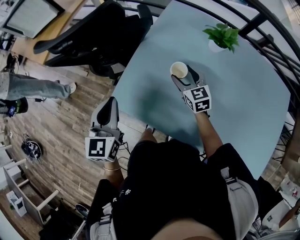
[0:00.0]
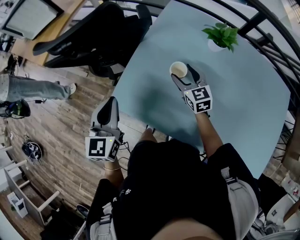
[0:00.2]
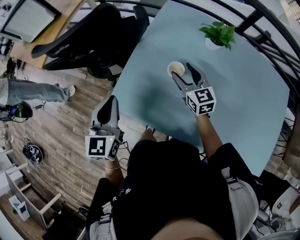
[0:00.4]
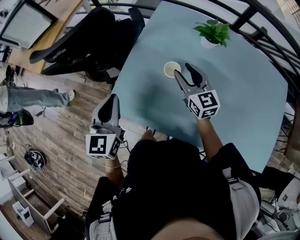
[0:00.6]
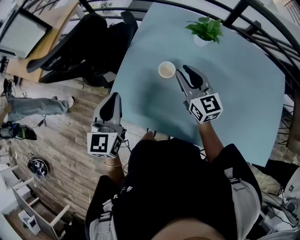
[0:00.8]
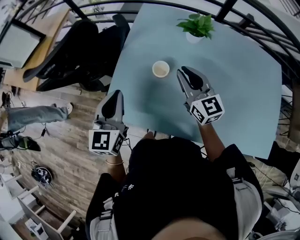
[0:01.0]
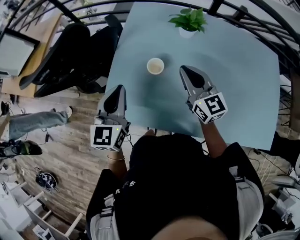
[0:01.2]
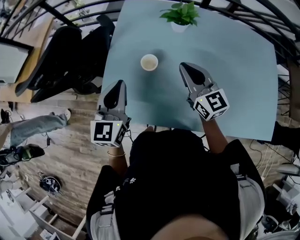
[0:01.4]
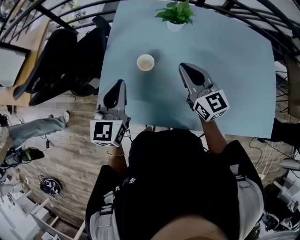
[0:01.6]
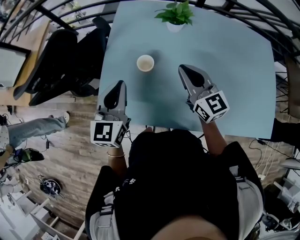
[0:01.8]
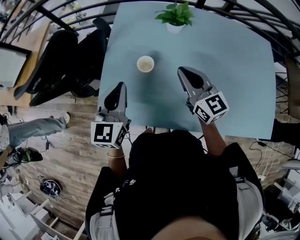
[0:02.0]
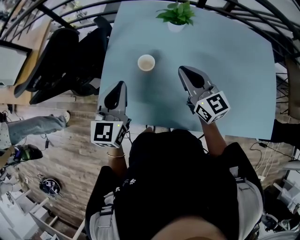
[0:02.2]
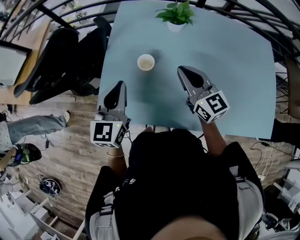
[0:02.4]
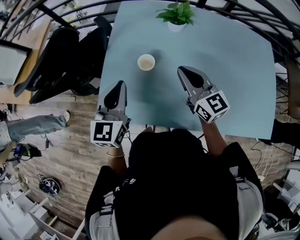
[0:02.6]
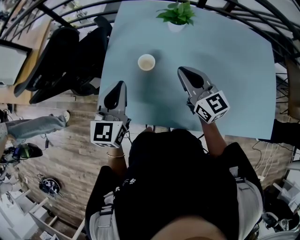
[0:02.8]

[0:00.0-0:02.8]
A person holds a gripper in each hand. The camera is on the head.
0.0 to 1.4 s: The right gripper goes about 20 cm upward, to the right and backward, rotates some 30 degrees, and closes its fingers. Meanwhile the left gripper travels to the right by approximately 15 cm, and swivels some 20 degrees.
1.4 to 2.8 s: The grippers make only small movements.

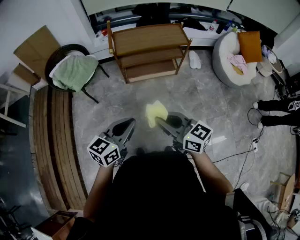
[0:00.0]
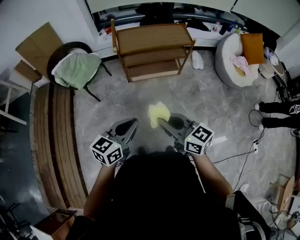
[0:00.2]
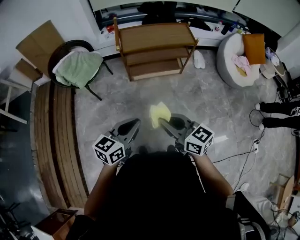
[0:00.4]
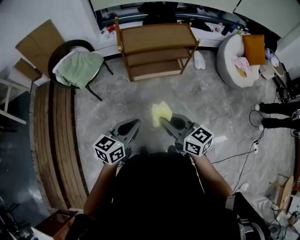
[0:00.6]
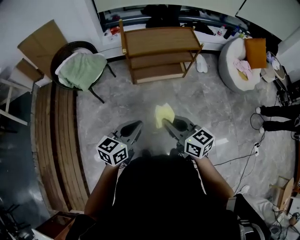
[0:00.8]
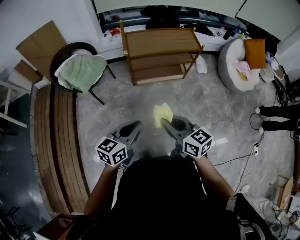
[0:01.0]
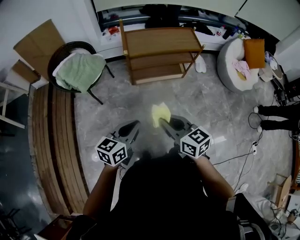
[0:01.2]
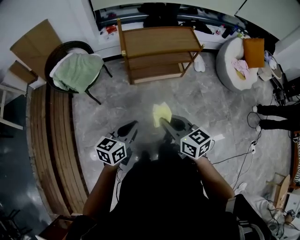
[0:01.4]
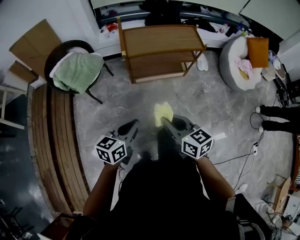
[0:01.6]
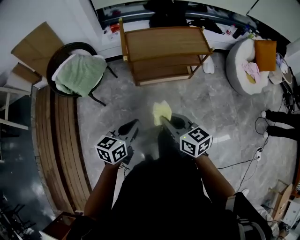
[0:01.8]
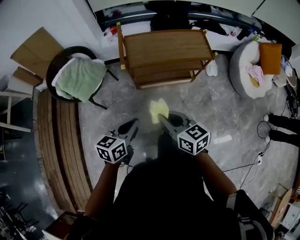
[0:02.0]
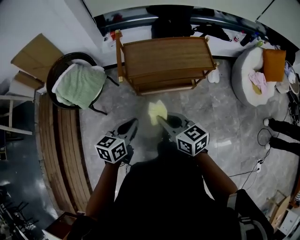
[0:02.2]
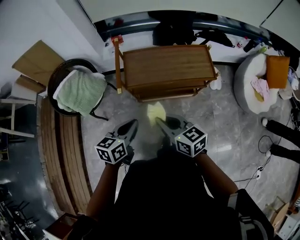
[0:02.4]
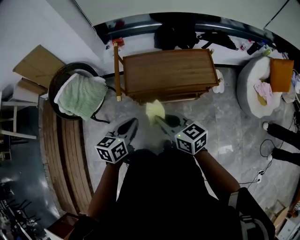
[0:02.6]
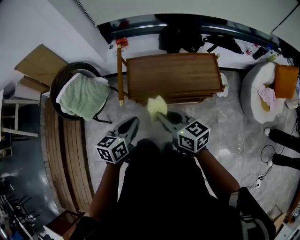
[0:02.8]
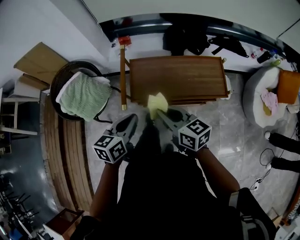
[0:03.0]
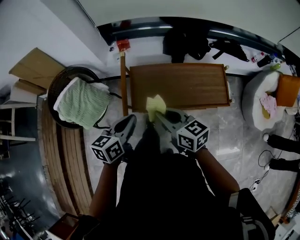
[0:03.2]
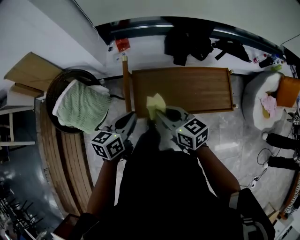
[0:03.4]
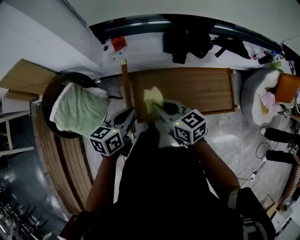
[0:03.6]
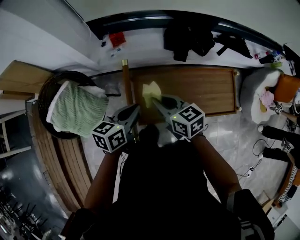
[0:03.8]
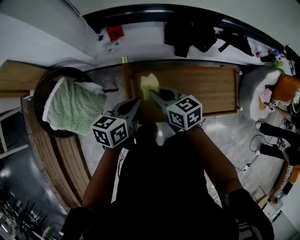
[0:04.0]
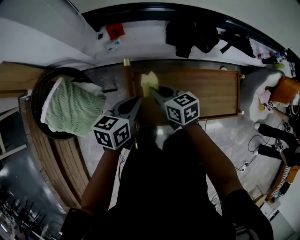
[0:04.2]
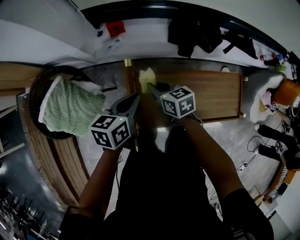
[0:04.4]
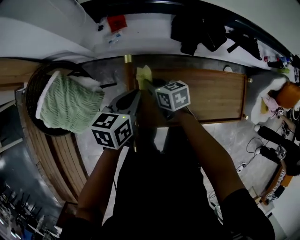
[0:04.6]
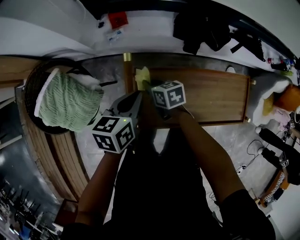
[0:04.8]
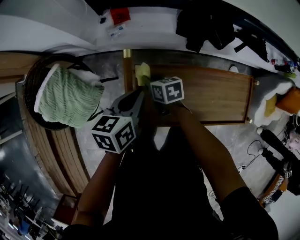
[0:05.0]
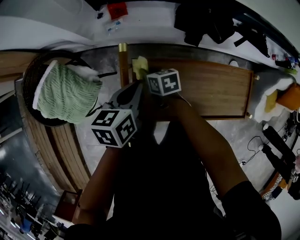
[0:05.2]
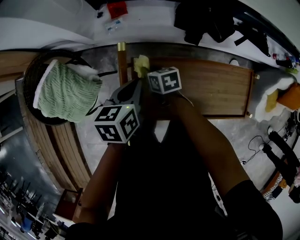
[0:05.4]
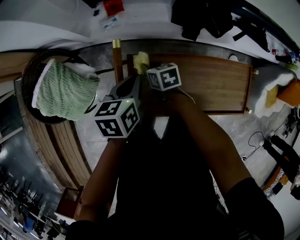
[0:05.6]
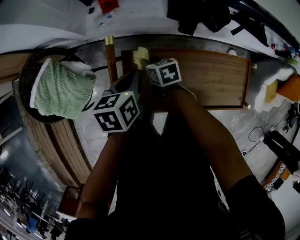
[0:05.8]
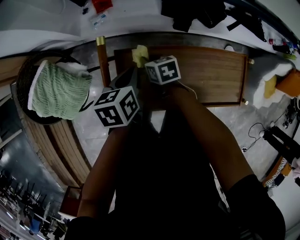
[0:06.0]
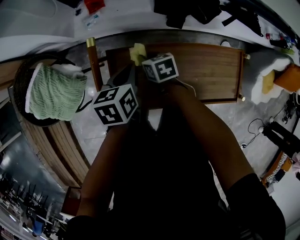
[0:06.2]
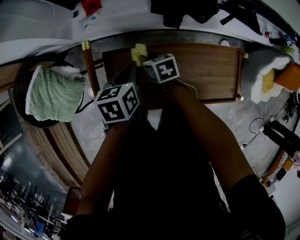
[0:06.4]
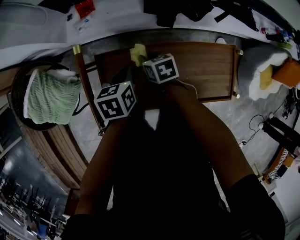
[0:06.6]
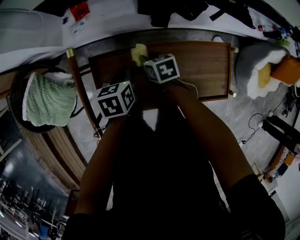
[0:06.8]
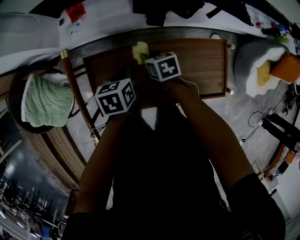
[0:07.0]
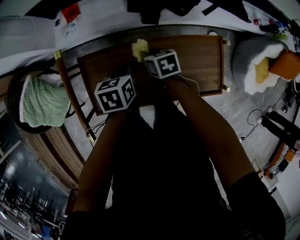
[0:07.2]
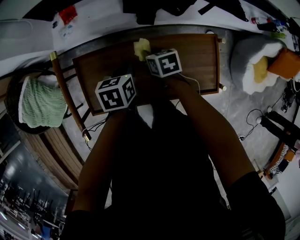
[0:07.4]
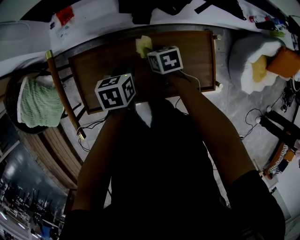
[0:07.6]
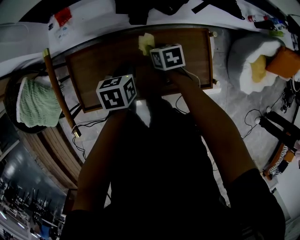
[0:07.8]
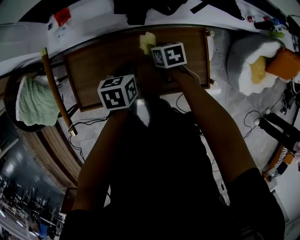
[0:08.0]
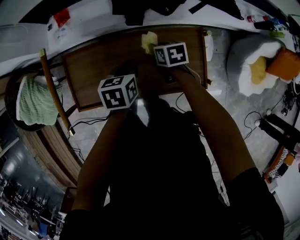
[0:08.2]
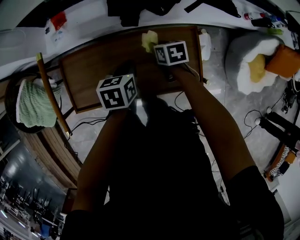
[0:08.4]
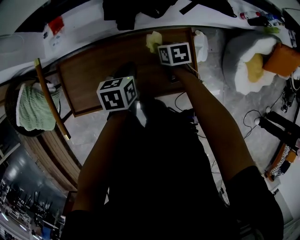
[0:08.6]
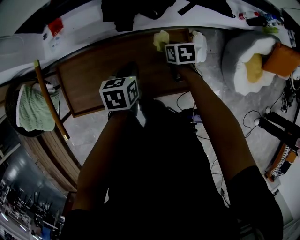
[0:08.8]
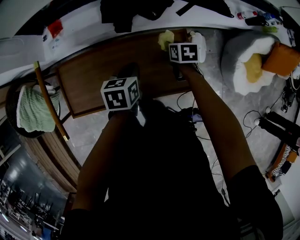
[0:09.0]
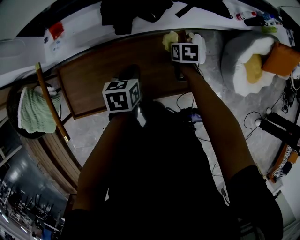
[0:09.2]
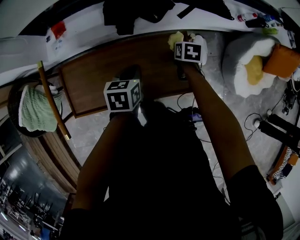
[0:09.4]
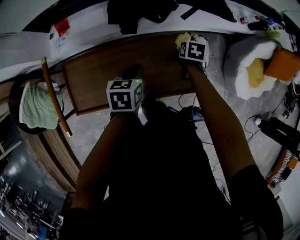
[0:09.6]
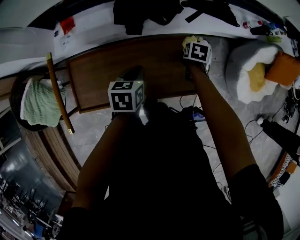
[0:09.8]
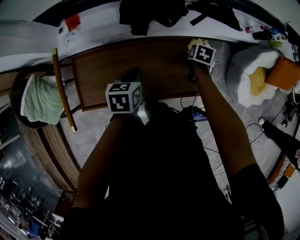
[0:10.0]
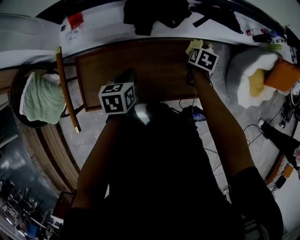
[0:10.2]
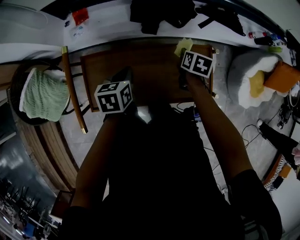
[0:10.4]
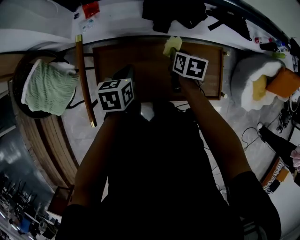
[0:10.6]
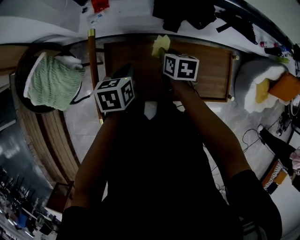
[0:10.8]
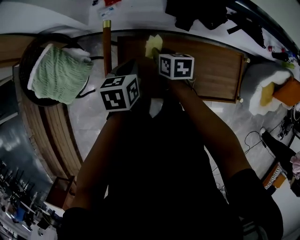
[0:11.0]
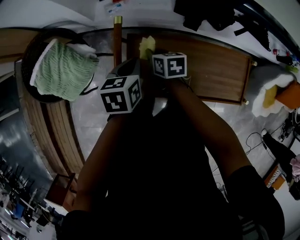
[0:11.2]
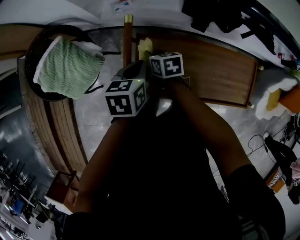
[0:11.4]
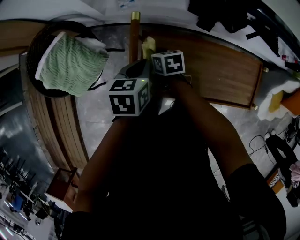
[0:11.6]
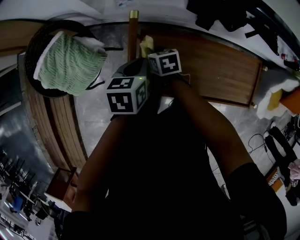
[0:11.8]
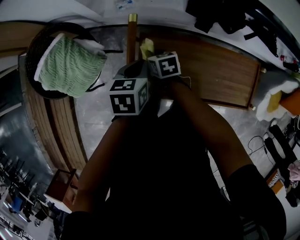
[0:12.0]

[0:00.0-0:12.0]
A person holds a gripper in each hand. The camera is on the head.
0.0 to 1.6 s: The right gripper heads forward and to the left, covering some 10 cm. The left gripper shifts approximately 15 cm forward, to the left and downward.
1.6 to 3.0 s: Both grippers move forward, about 40 cm.
3.0 to 4.4 s: The right gripper goes some 35 cm forward and downward, and changes its angle by some 20 degrees. Meanwhile the left gripper goes about 30 cm forward.
4.4 to 6.0 s: The left gripper moves to the right and downward, some 10 cm, while the right gripper goes approximately 15 cm downward and to the right.
6.0 to 7.6 s: The two grippers go about 20 cm to the right.
7.6 to 9.0 s: The left gripper heads to the right, covering some 15 cm. Meanwhile the right gripper shifts approximately 20 cm to the right.
9.0 to 10.4 s: The right gripper shifts roughly 10 cm to the left and upward. Meanwhile the left gripper heads to the left and backward, covering about 15 cm.
10.4 to 12.0 s: The right gripper changes place by approximately 40 cm, and changes its angle by about 40 degrees. Meanwhile the left gripper moves roughly 20 cm.

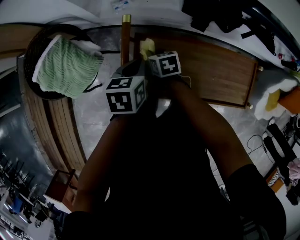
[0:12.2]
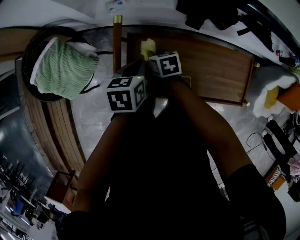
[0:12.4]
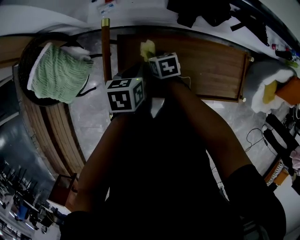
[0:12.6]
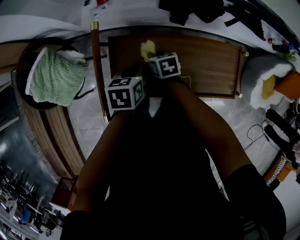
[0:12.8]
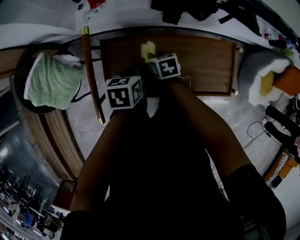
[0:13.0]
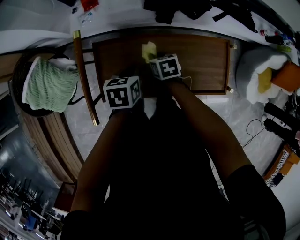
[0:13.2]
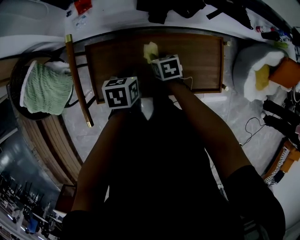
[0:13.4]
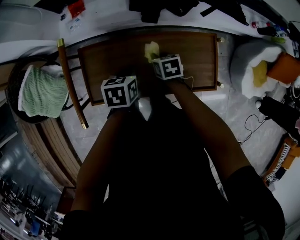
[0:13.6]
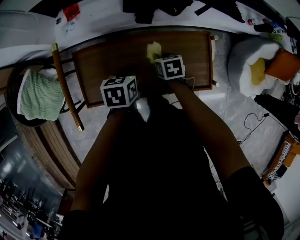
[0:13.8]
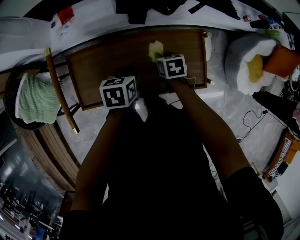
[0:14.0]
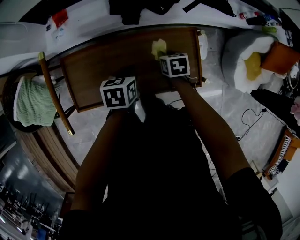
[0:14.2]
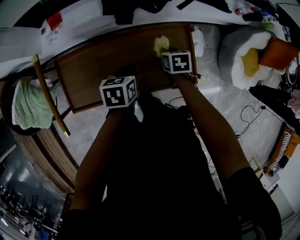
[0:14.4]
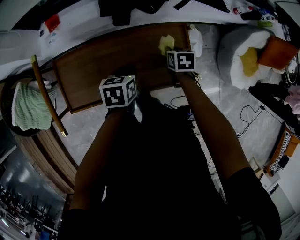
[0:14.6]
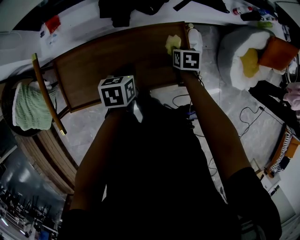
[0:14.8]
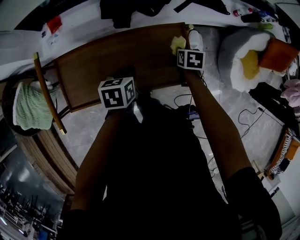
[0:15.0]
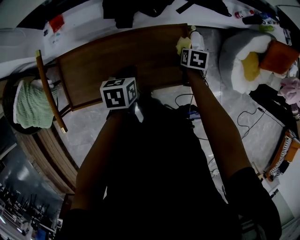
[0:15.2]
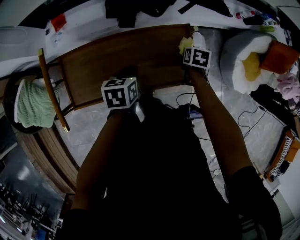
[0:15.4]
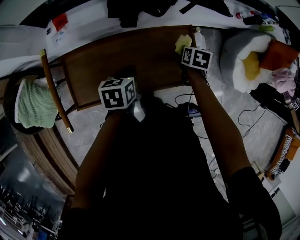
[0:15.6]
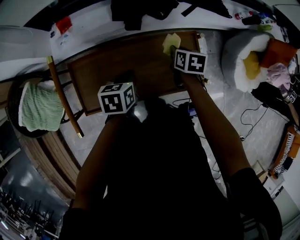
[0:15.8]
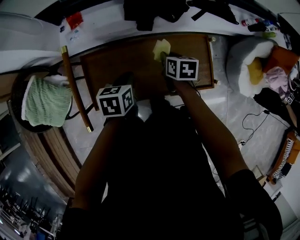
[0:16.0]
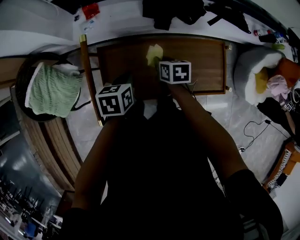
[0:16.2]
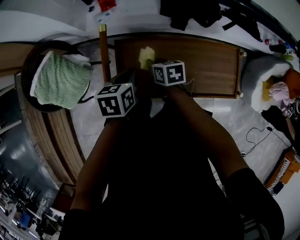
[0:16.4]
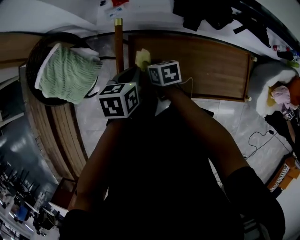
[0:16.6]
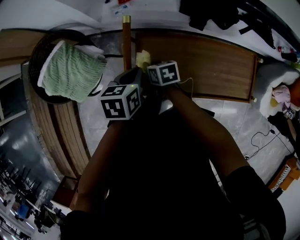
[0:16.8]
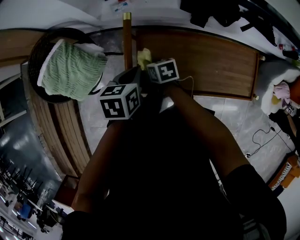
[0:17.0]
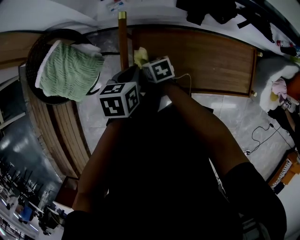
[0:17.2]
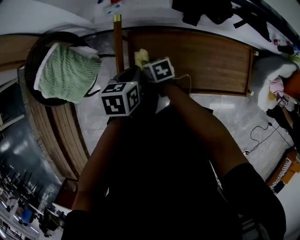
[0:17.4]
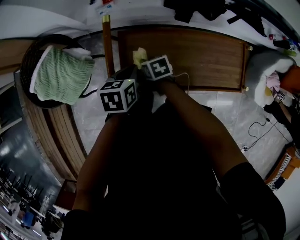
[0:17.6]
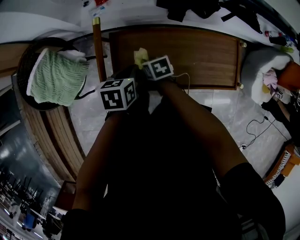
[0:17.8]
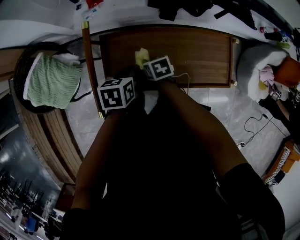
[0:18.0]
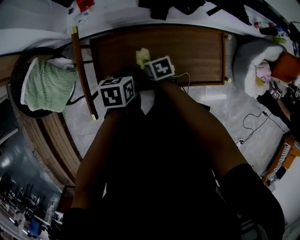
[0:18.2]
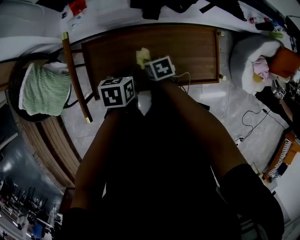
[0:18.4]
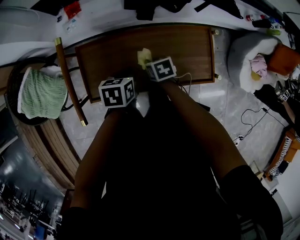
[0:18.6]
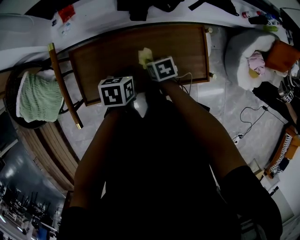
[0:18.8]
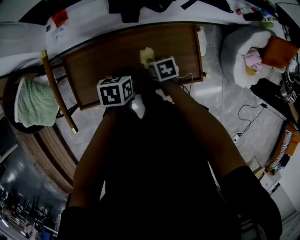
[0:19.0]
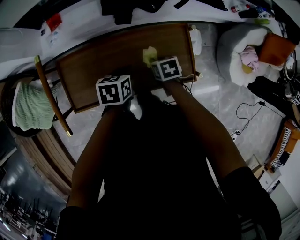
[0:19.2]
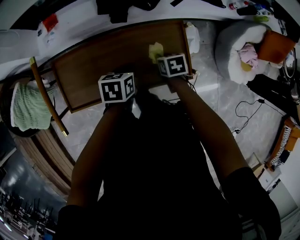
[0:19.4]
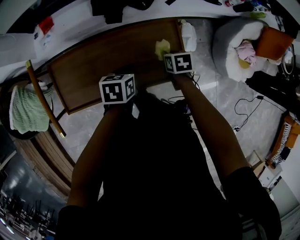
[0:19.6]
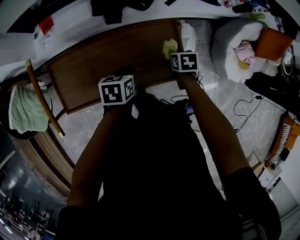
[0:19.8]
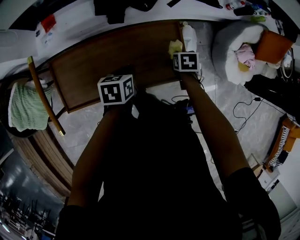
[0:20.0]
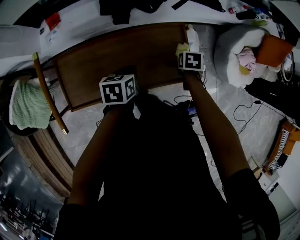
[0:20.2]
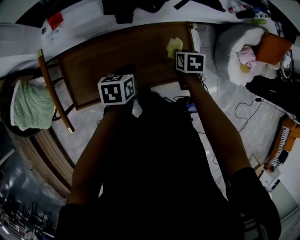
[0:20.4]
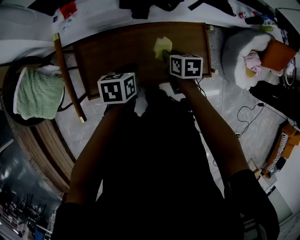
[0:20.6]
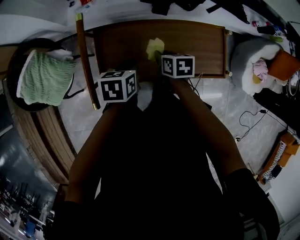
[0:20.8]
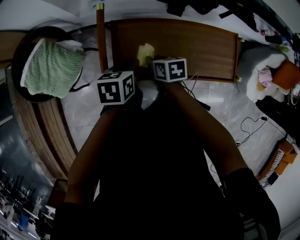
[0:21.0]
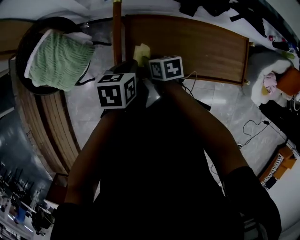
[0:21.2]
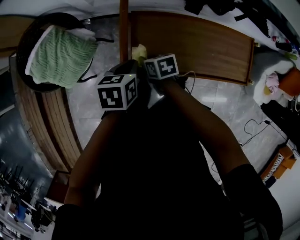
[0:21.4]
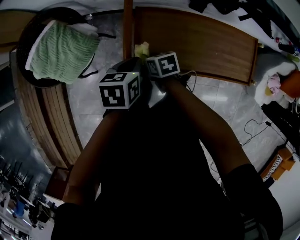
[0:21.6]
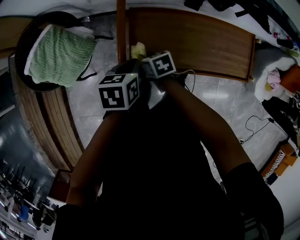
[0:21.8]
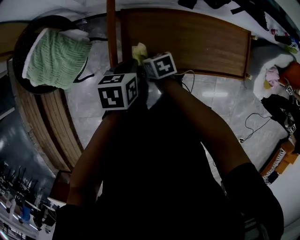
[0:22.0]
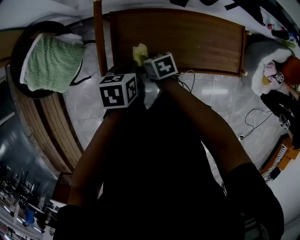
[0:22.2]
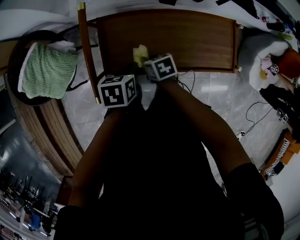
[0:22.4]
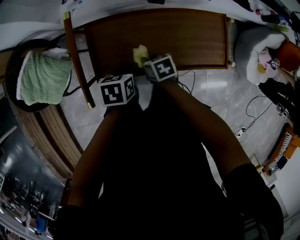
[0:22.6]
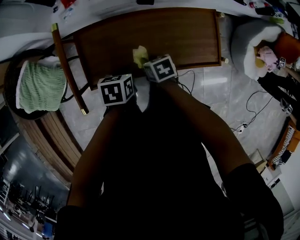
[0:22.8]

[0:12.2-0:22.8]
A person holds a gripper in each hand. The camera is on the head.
12.2 to 13.8 s: Both grippers travel together to the right, about 25 cm.
13.8 to 15.2 s: The left gripper travels to the right by roughly 10 cm, while the right gripper heads to the right, covering approximately 25 cm, and turns by about 20 degrees.
15.2 to 16.8 s: The left gripper shifts by approximately 35 cm. The right gripper ends up approximately 60 cm from where it was, and changes its angle by about 40 degrees.
16.8 to 18.2 s: The grippers both shift to the right by roughly 15 cm.
18.2 to 19.8 s: The left gripper changes place by roughly 20 cm. Meanwhile the right gripper ends up some 35 cm from where it was, and turns by about 20 degrees.
19.8 to 21.2 s: The right gripper moves about 50 cm, and changes its angle by roughly 30 degrees. Meanwhile the left gripper changes place by roughly 35 cm.
21.2 to 22.8 s: The right gripper is displaced to the right by about 20 cm; the left gripper goes approximately 15 cm to the right and downward.
